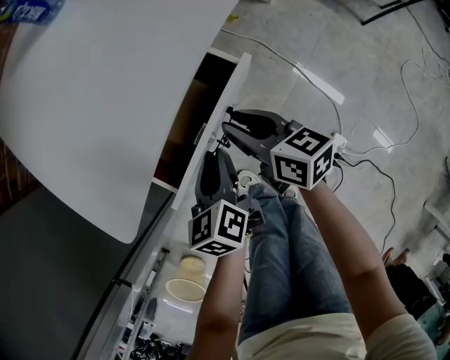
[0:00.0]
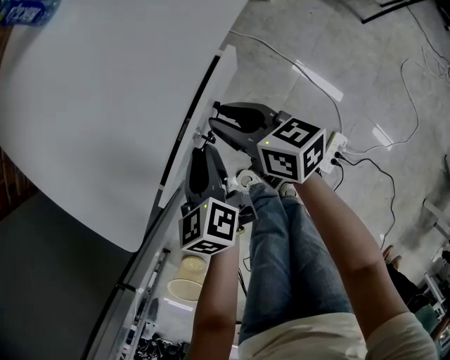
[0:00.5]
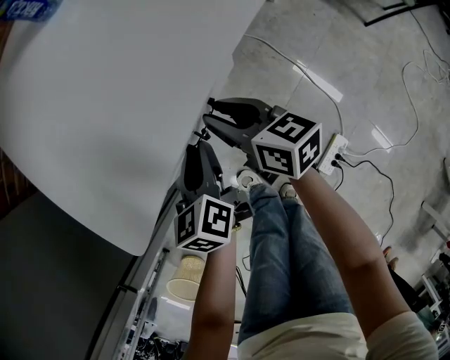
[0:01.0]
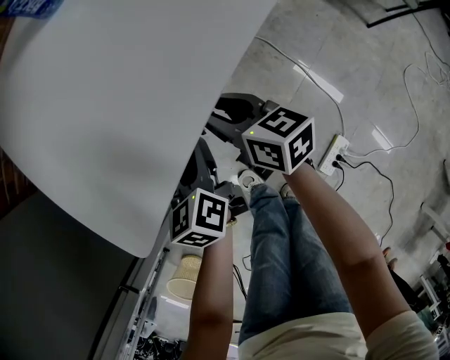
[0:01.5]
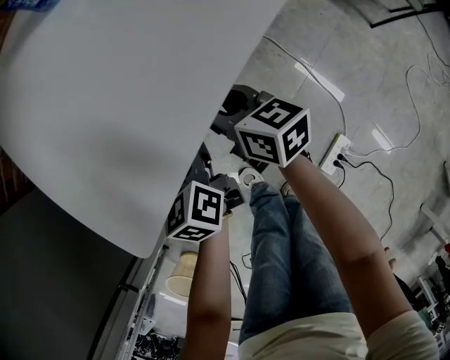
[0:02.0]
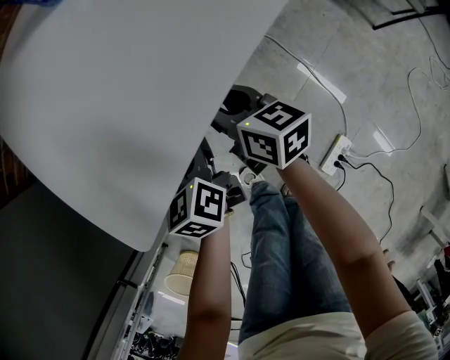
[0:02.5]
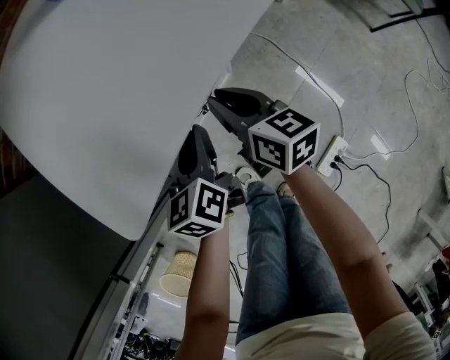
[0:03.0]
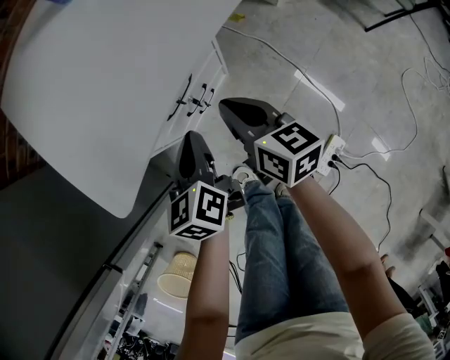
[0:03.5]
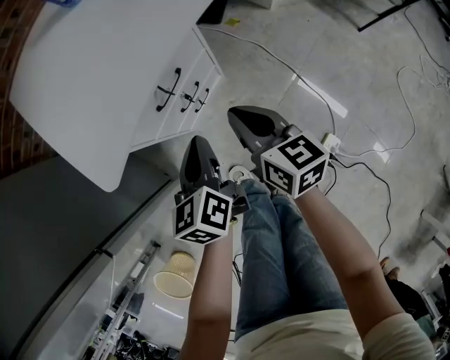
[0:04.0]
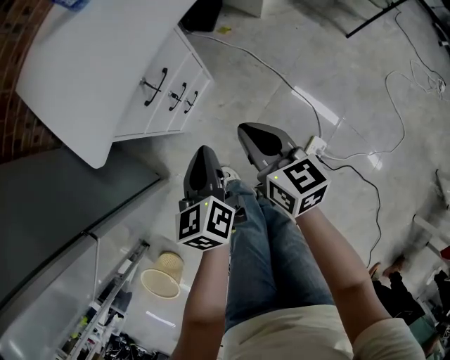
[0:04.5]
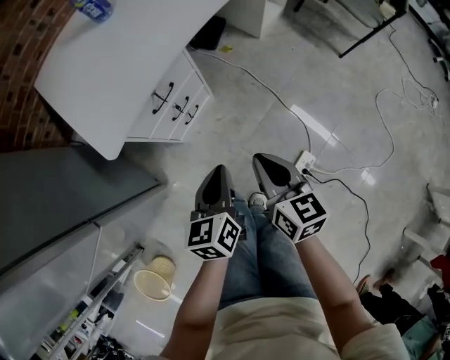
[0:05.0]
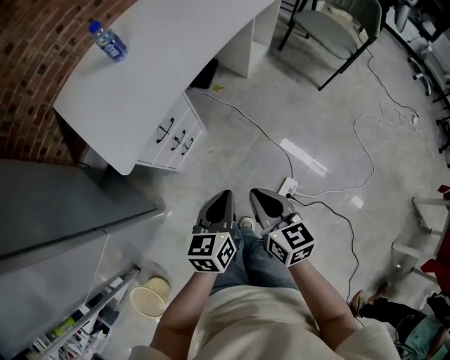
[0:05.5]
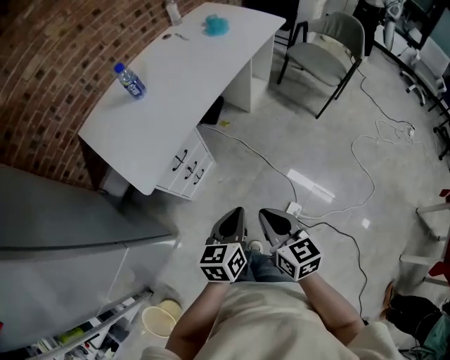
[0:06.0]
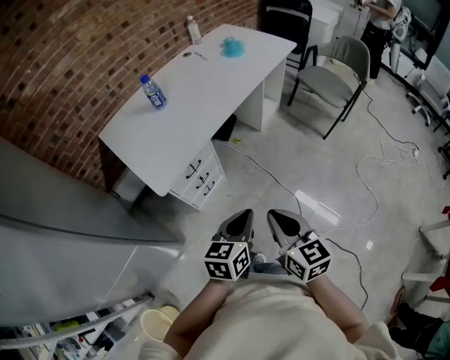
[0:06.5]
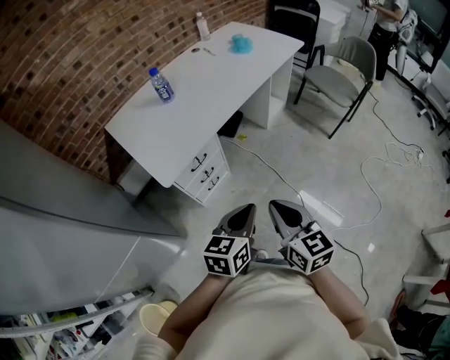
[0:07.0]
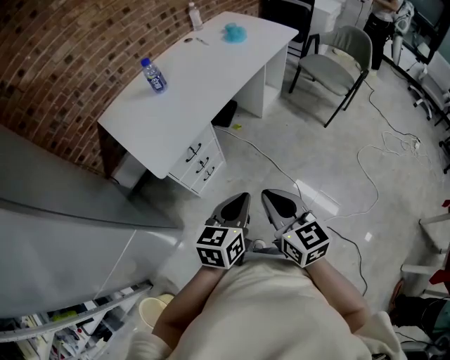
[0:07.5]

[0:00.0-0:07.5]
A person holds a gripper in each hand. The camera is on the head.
0:00.0 to 0:02.0: The two grippers go about 10 cm forward.
0:02.0 to 0:04.0: The left gripper shifts some 15 cm backward and upward, and closes, while the right gripper is displaced backward by roughly 15 cm, and closes.
0:04.0 to 0:05.5: The two grippers go roughly 30 cm backward, upward and to the right. The left gripper rotates approximately 30 degrees.
0:05.5 to 0:07.5: Both grippers move upward, some 15 cm.

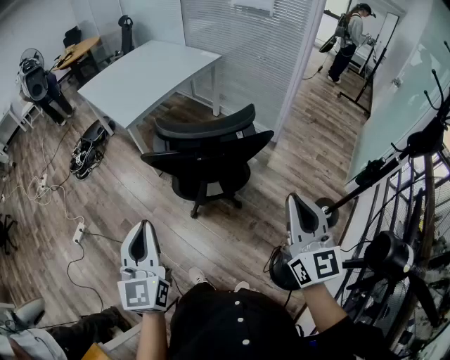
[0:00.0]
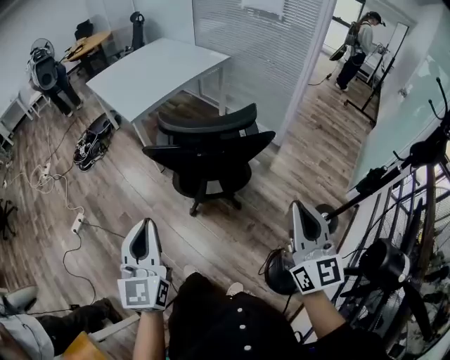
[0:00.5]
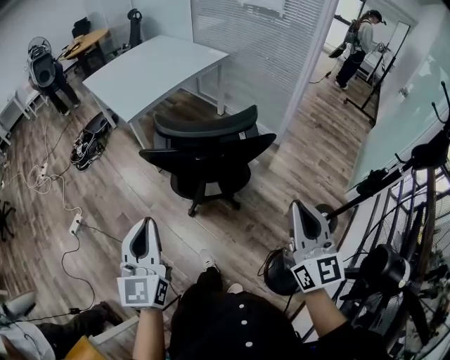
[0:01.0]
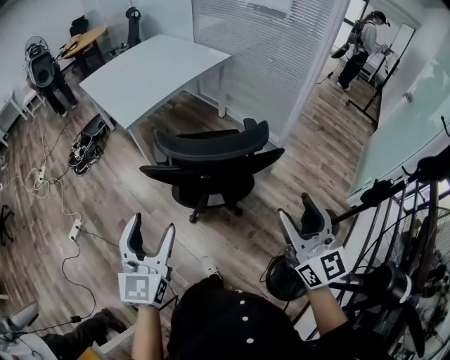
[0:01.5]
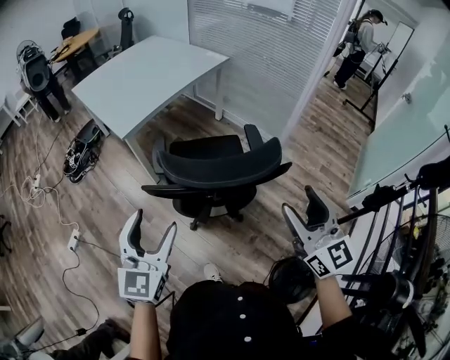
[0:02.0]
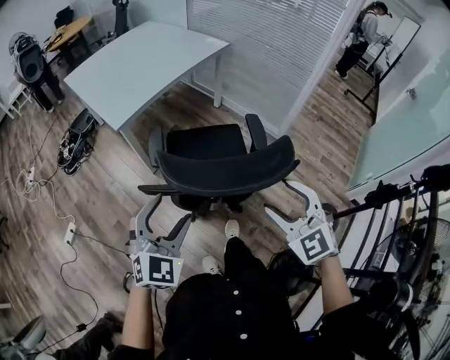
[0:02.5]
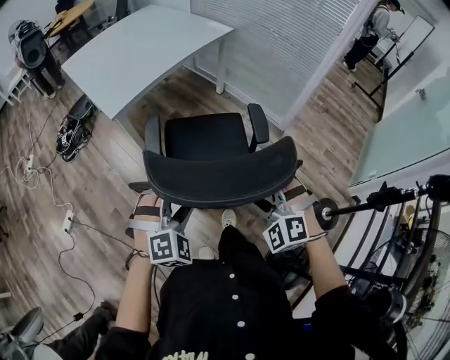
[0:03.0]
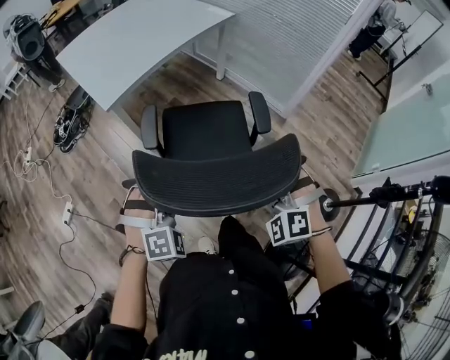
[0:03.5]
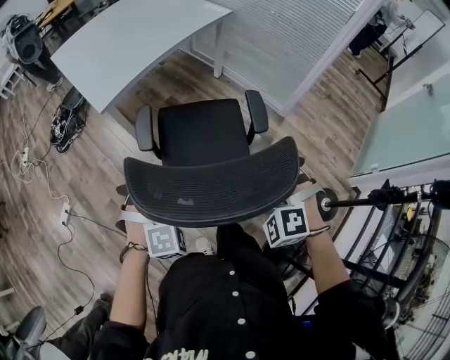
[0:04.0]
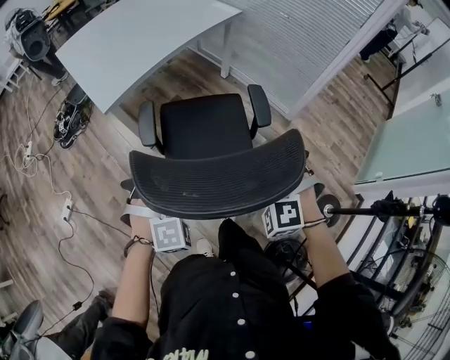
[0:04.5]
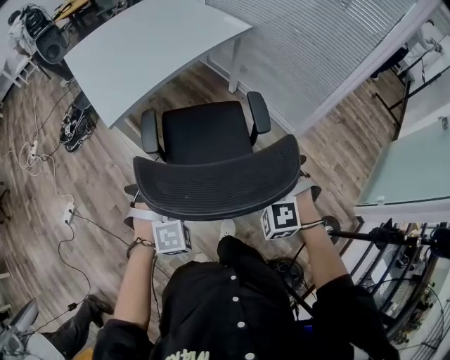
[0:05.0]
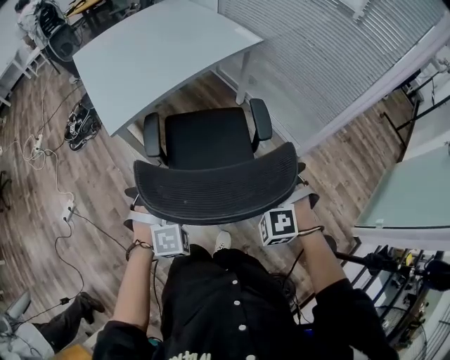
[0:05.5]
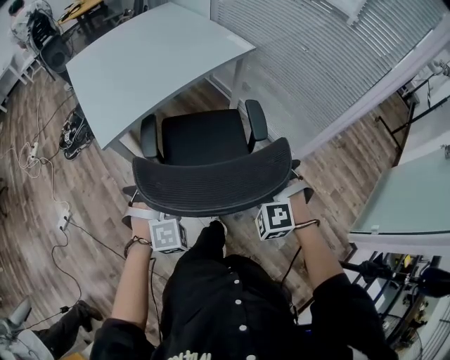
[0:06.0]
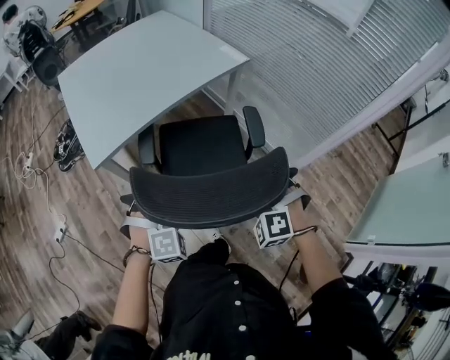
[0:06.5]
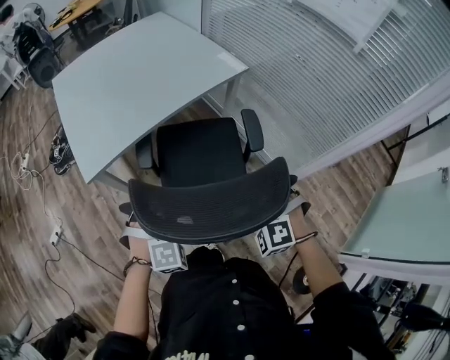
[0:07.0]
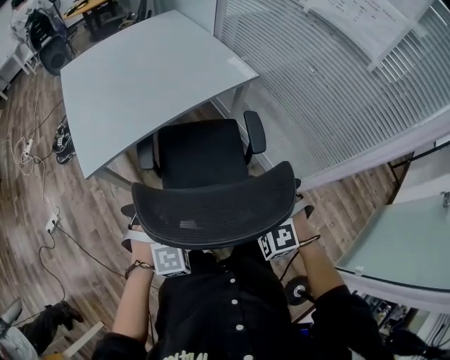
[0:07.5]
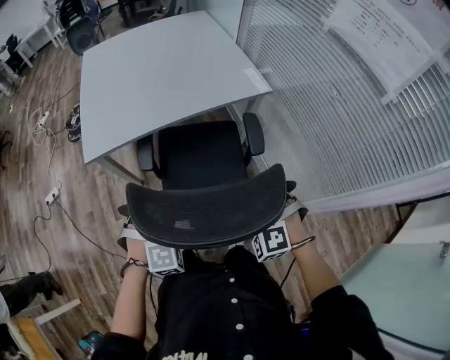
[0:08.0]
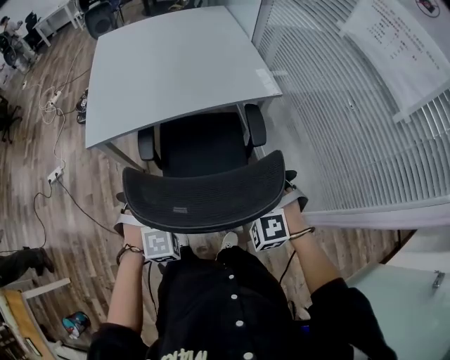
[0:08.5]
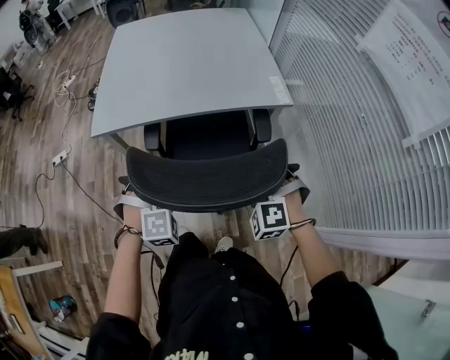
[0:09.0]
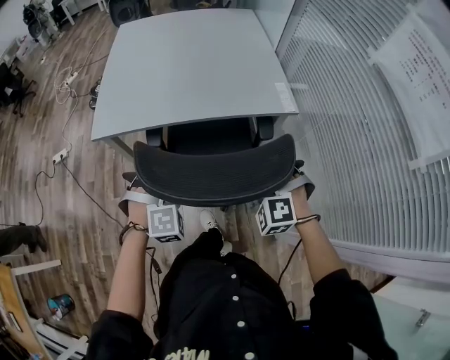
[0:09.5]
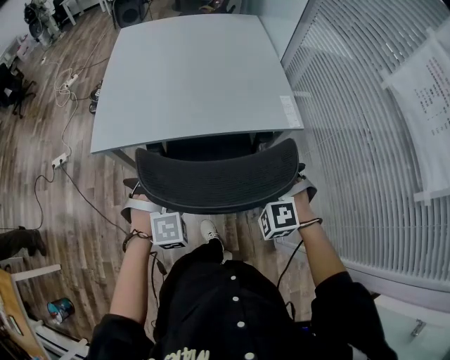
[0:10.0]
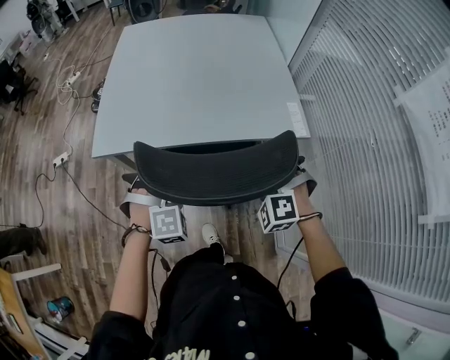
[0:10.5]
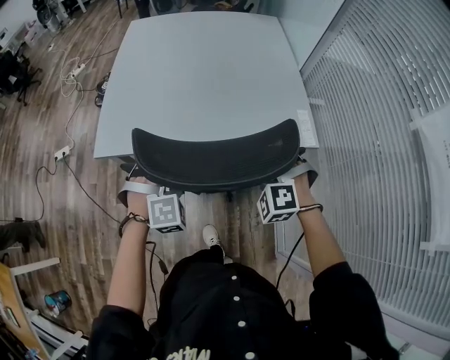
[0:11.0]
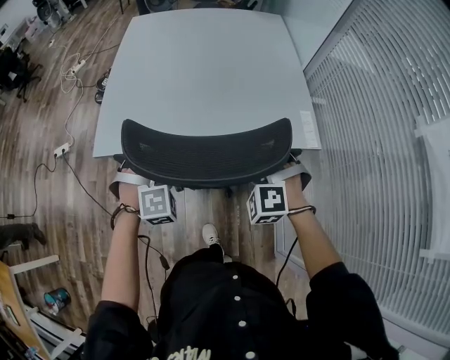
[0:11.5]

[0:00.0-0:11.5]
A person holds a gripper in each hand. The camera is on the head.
0:00.0 to 0:02.0: Both grippers move forward, roughly 15 cm. The left gripper opens its fingers, while the right gripper opens its fingers.
0:02.0 to 0:04.0: The left gripper is displaced downward, forward and to the right by roughly 25 cm, twists some 60 degrees clockwise, seen from behind, and closes; the right gripper heads downward and forward, covering roughly 25 cm, and tips its fingers downward by some 50 degrees.
0:04.0 to 0:06.0: The two grippers go roughly 20 cm forward.
0:06.0 to 0:07.5: Both grippers move forward and to the right, approximately 15 cm.
0:07.5 to 0:09.5: Both grippers move forward and to the right, about 20 cm. The right gripper rotates approximately 20 degrees, while the left gripper changes its angle by about 20 degrees.
0:09.5 to 0:11.5: Both grippers move forward, approximately 20 cm.

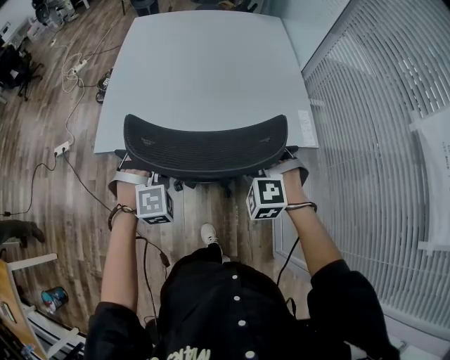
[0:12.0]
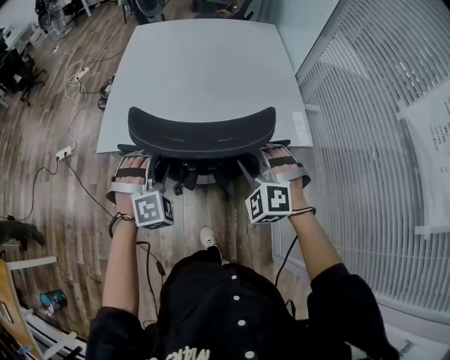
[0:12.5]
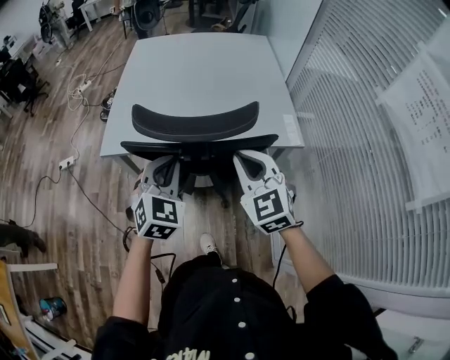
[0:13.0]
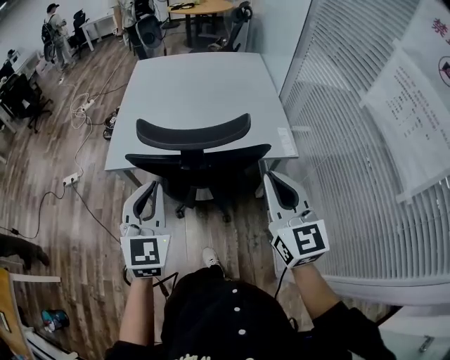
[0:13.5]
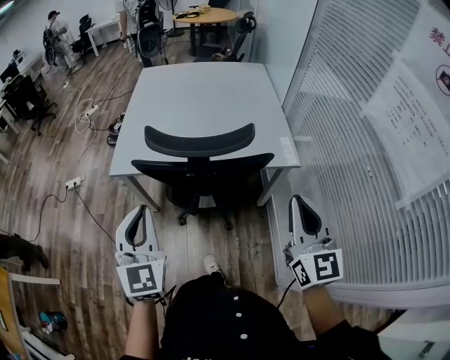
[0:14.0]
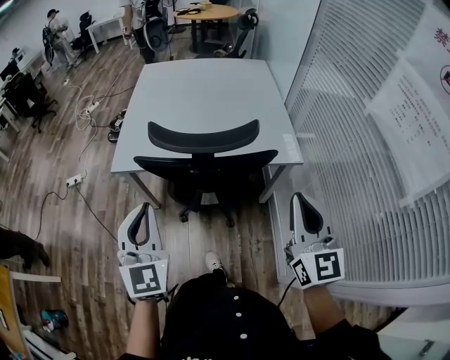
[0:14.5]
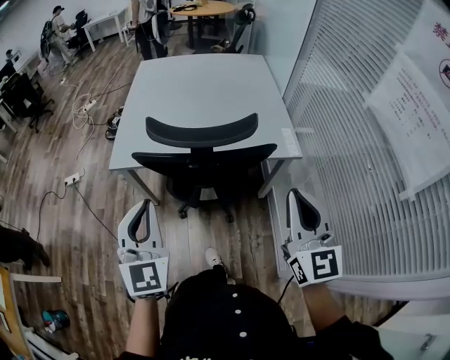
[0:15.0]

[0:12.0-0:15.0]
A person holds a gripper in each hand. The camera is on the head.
0:12.0 to 0:13.5: Both grippers move upward and backward, some 25 cm. The right gripper rolls clockwise, seen from behind, by approximately 70 degrees, and closes its fingers; the left gripper rotates around the line of its fingers by some 60 degrees, counterclockwise from behind, and closes its fingers.
0:13.5 to 0:15.0: The left gripper ends up some 5 cm from where it was; the right gripper goes some 5 cm backward.

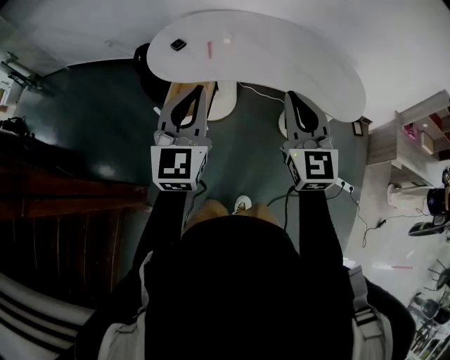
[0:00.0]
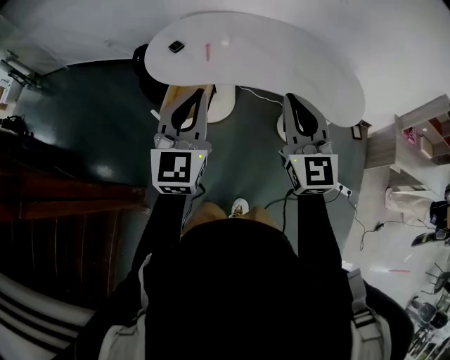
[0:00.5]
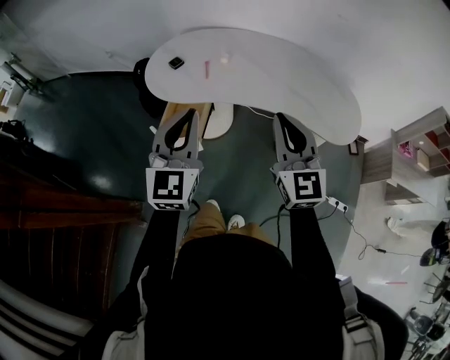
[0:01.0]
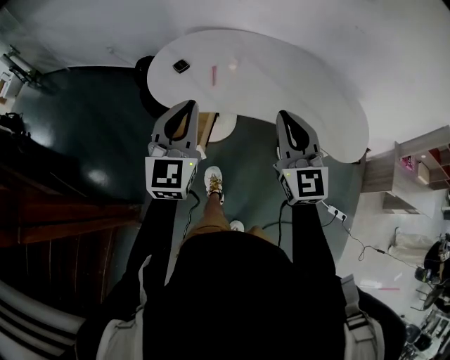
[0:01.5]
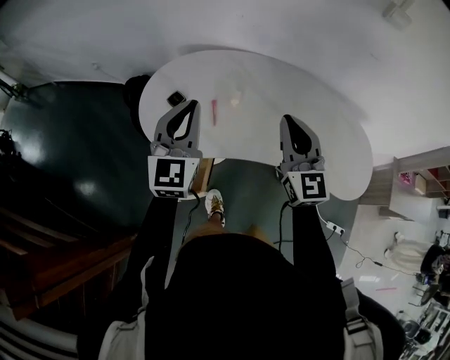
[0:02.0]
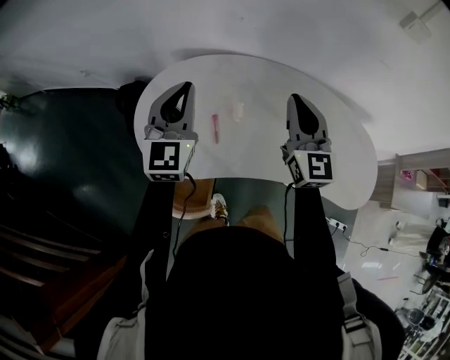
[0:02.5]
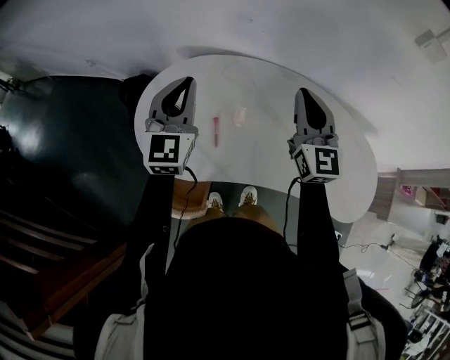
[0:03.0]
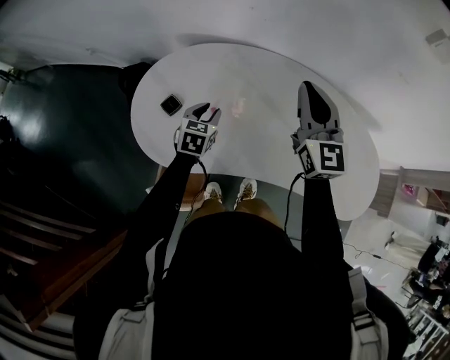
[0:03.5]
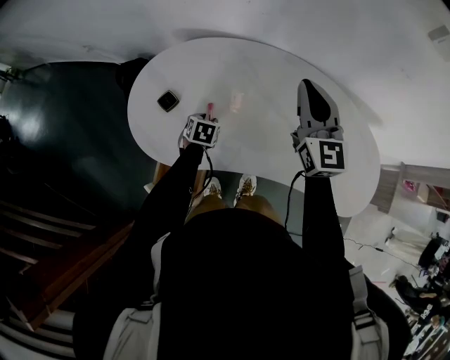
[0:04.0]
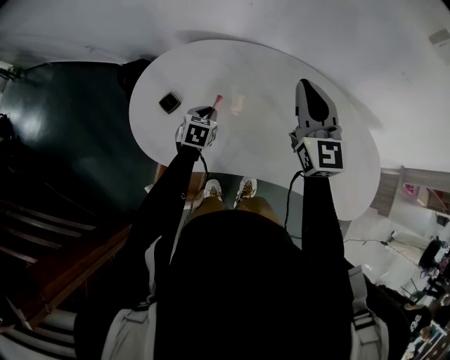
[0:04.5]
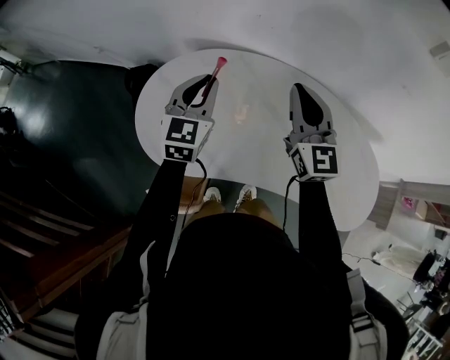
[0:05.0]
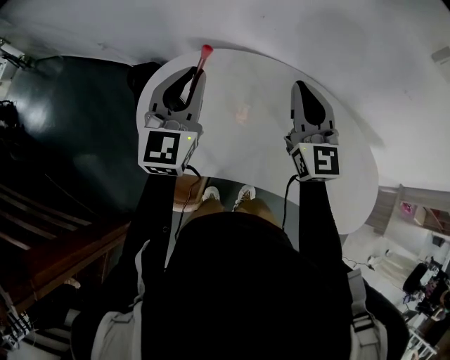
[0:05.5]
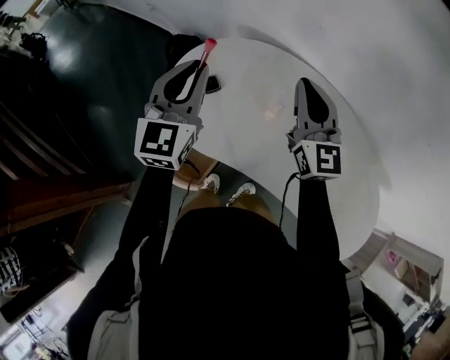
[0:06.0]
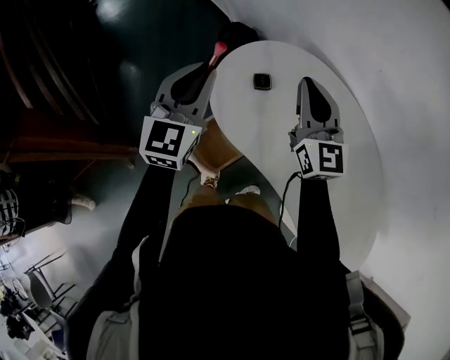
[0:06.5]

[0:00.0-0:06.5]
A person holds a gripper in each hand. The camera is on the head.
0:00.0 to 0:02.0: Both grippers move forward, some 30 cm.
0:02.0 to 0:04.5: The right gripper moves forward, some 20 cm. The left gripper goes about 35 cm downward and forward, and tips its fingers downward by about 50 degrees.
0:04.5 to 0:06.5: The left gripper travels upward by about 30 cm, and angles its fingers upward, by roughly 40 degrees; the right gripper changes place by about 25 cm, and rotates some 40 degrees.
